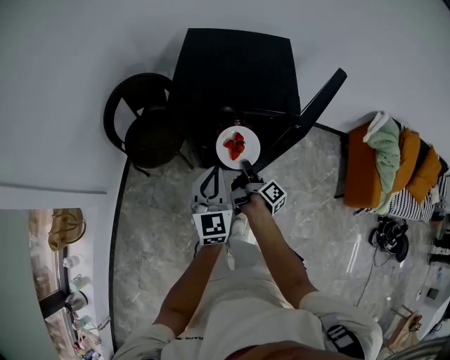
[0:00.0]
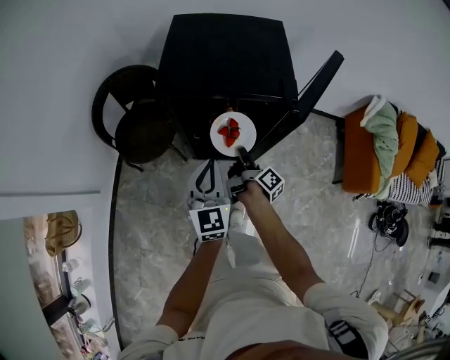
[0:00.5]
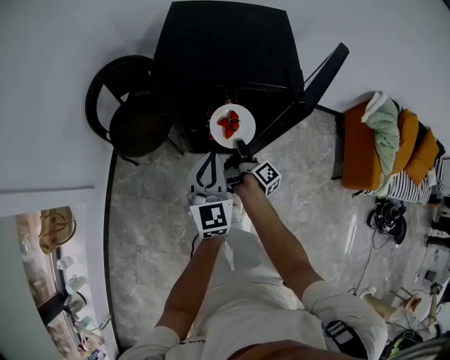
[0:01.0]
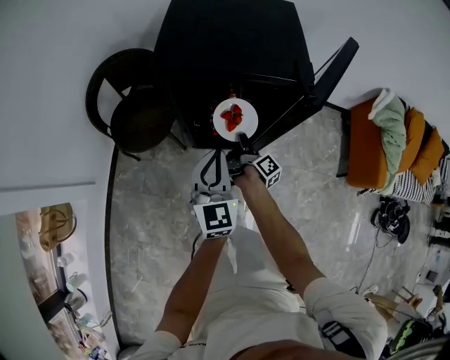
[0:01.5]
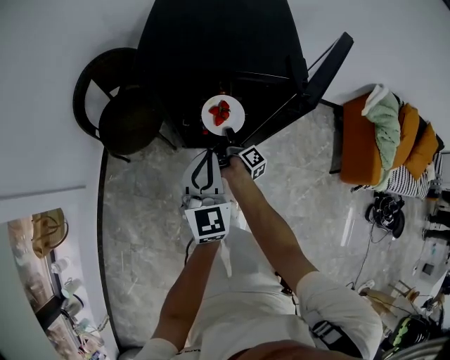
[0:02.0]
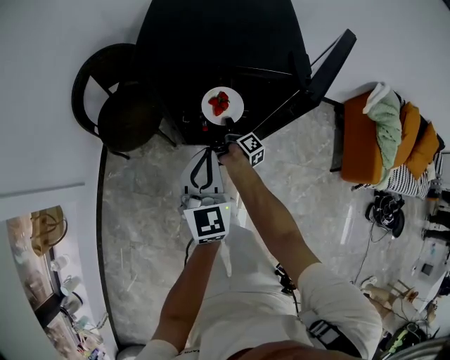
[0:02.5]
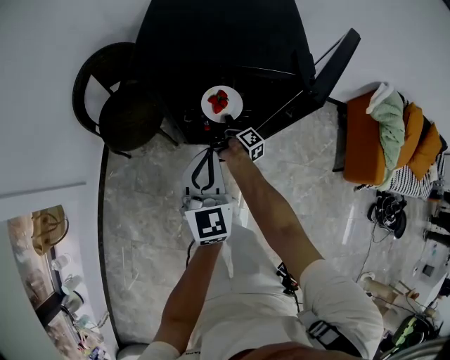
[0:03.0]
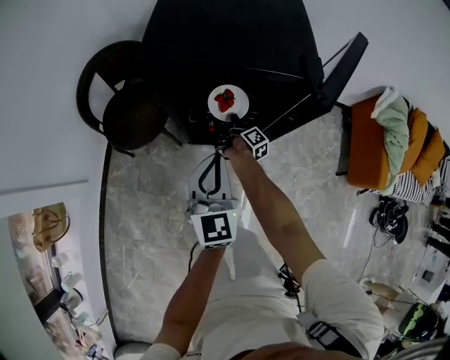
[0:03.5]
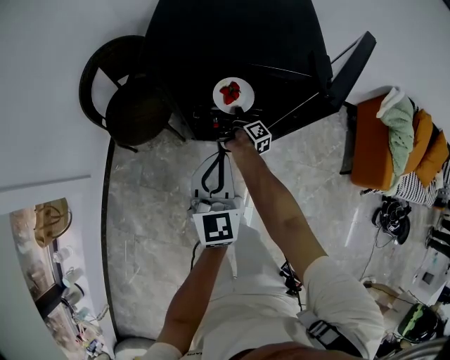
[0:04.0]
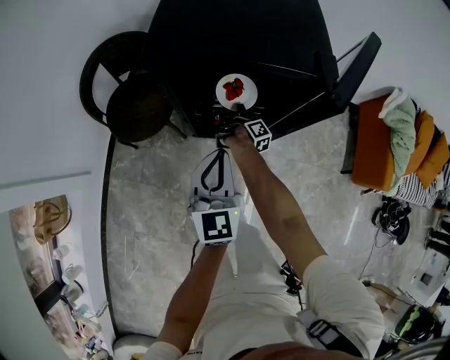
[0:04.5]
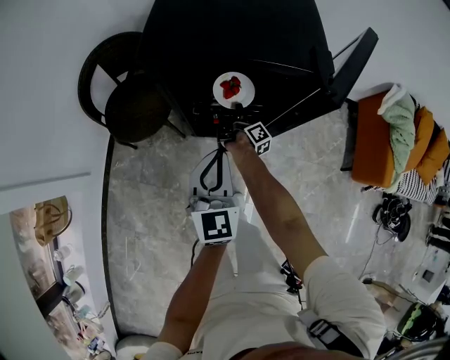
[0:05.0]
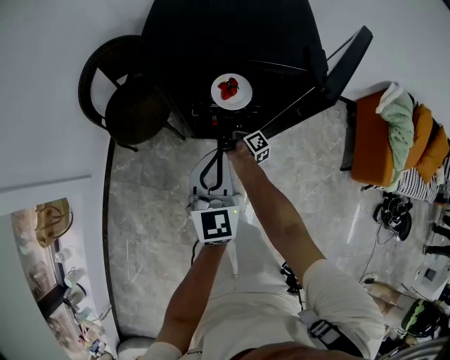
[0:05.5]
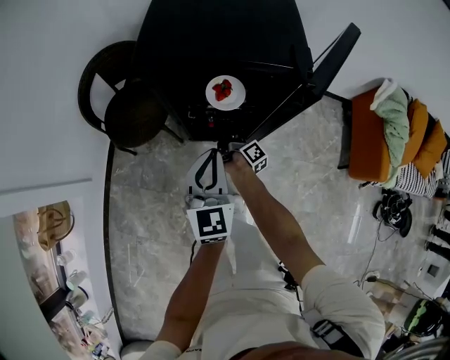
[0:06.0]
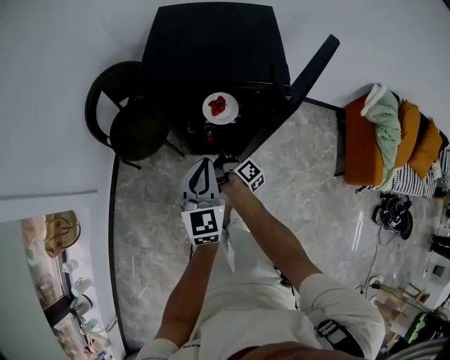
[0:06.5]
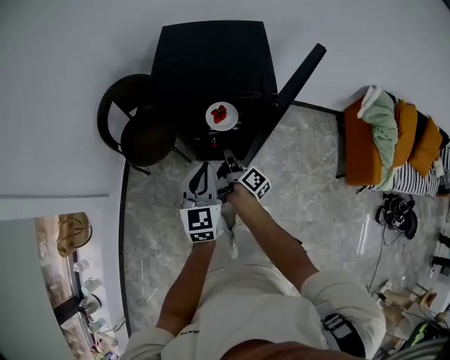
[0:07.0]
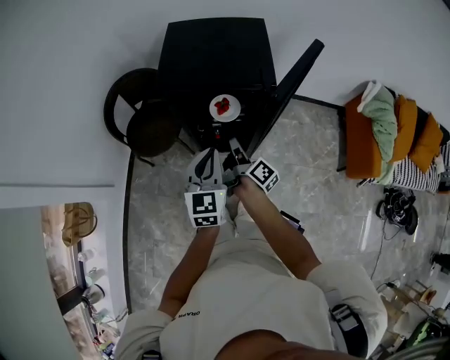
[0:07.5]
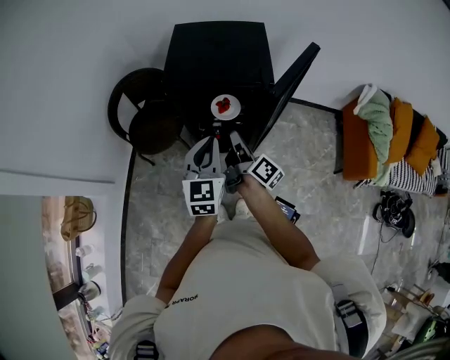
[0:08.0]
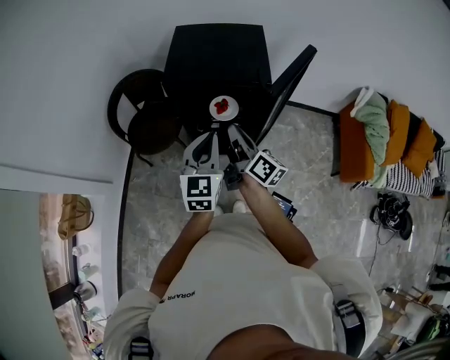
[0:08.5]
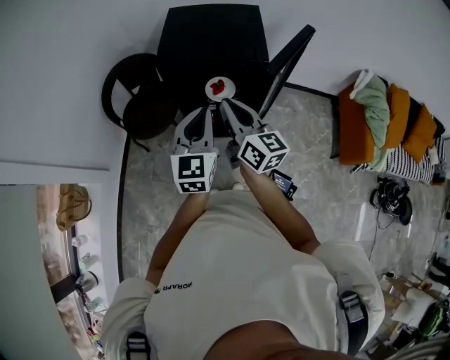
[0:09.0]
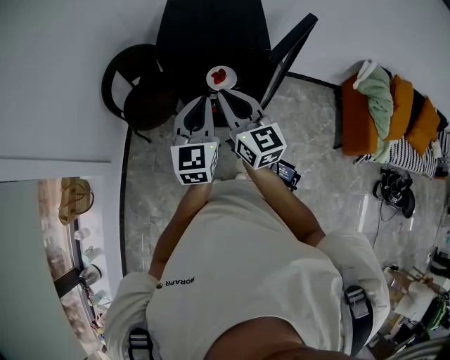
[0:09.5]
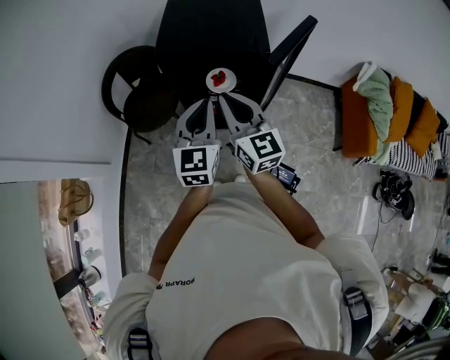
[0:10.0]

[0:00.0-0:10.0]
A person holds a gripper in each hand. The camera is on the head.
0:00.0 to 0:02.0: The left gripper goes roughly 5 cm downward.
0:06.0 to 0:08.0: The left gripper heads upward, covering roughly 15 cm.

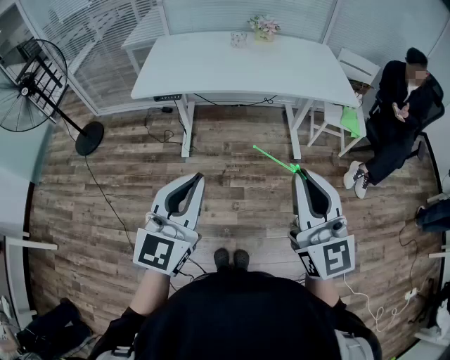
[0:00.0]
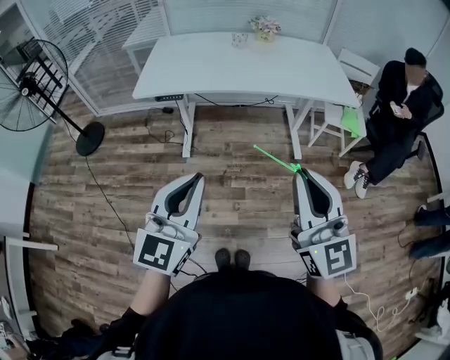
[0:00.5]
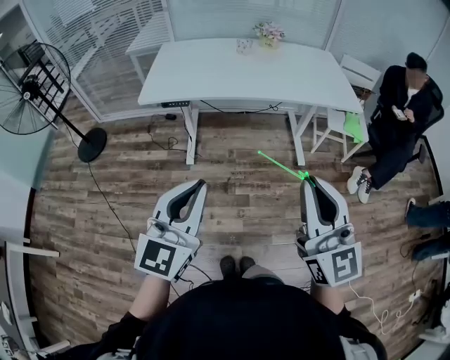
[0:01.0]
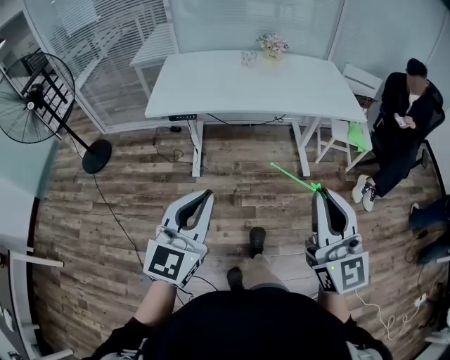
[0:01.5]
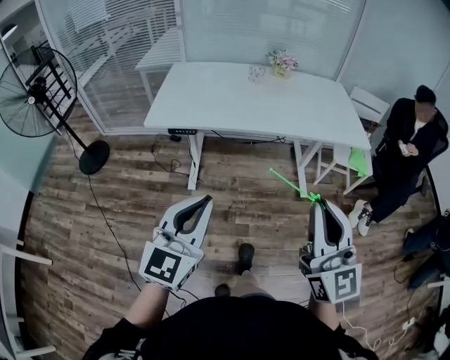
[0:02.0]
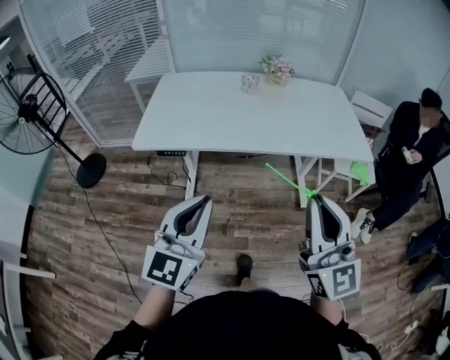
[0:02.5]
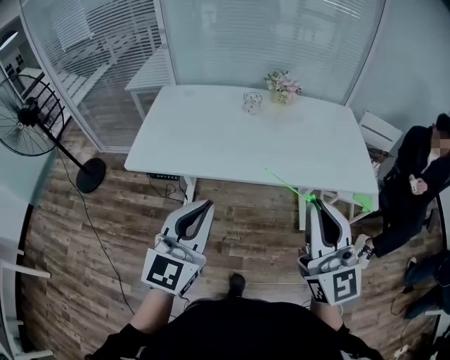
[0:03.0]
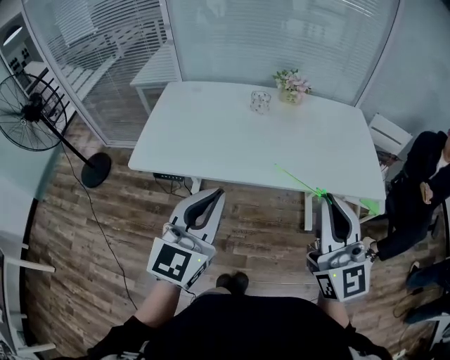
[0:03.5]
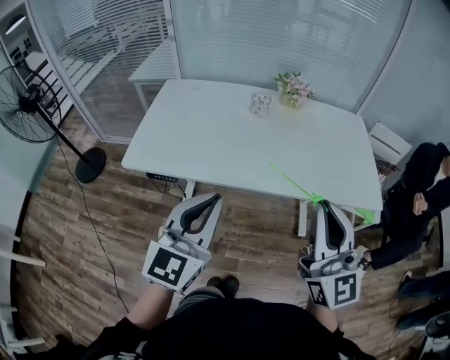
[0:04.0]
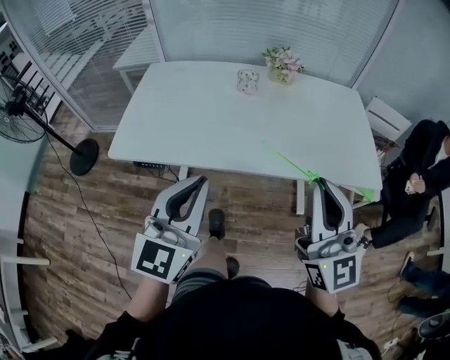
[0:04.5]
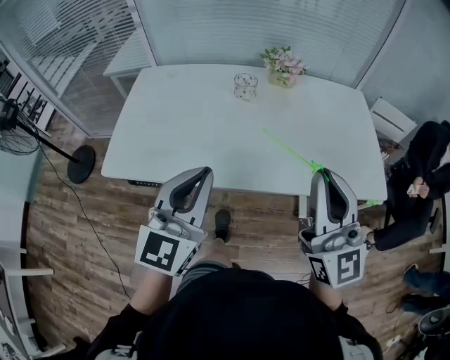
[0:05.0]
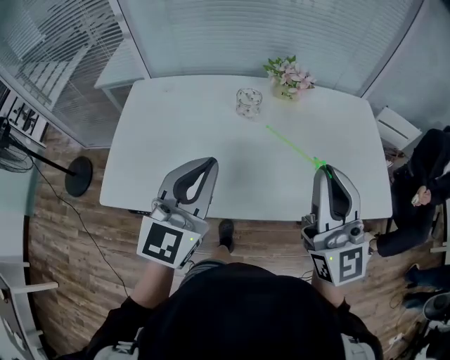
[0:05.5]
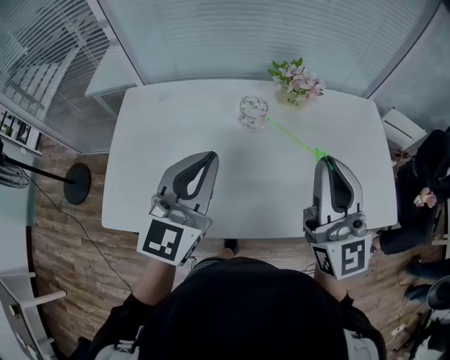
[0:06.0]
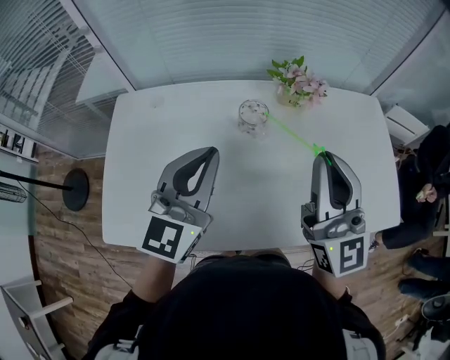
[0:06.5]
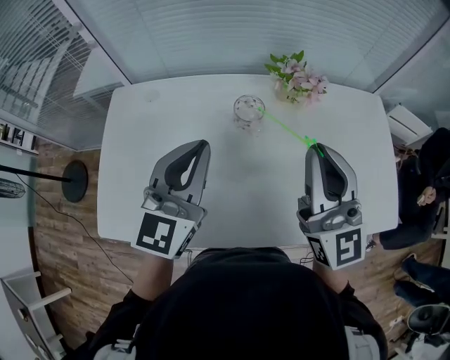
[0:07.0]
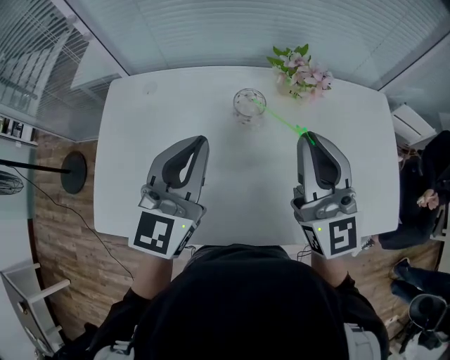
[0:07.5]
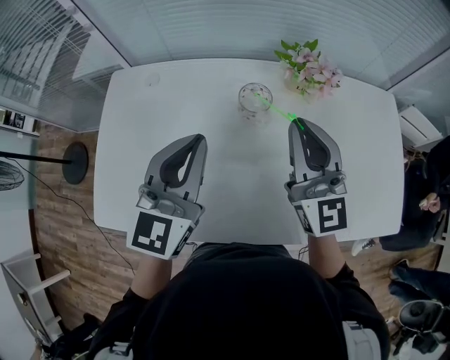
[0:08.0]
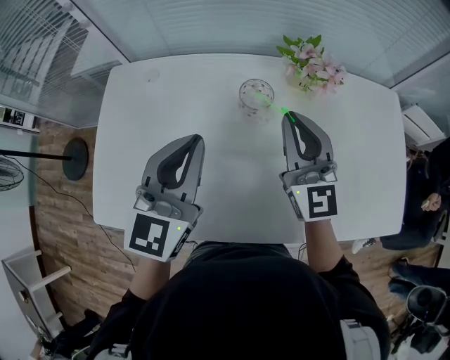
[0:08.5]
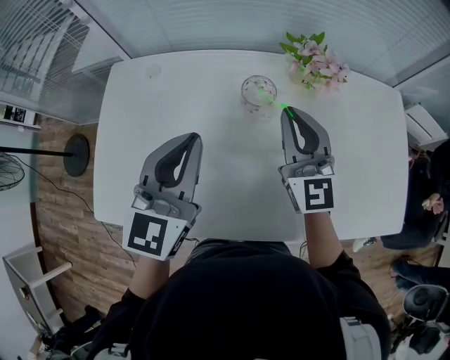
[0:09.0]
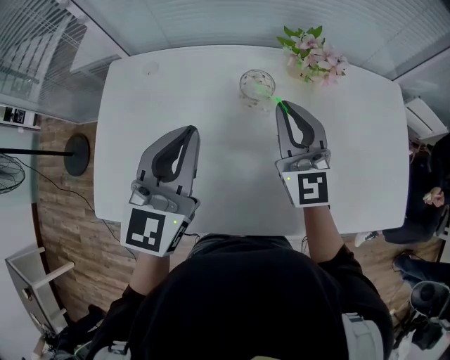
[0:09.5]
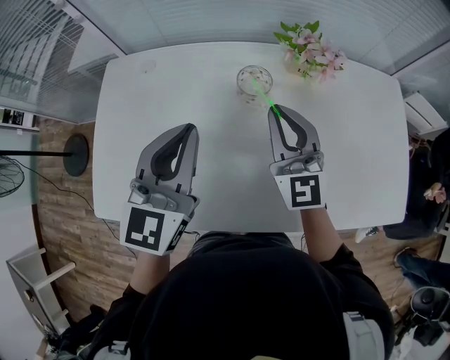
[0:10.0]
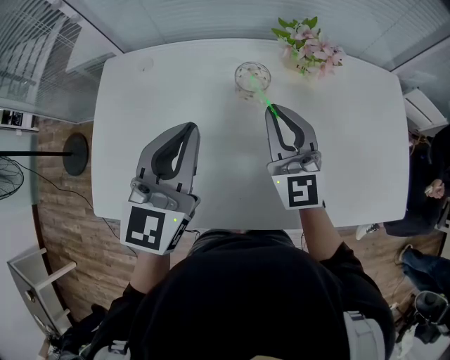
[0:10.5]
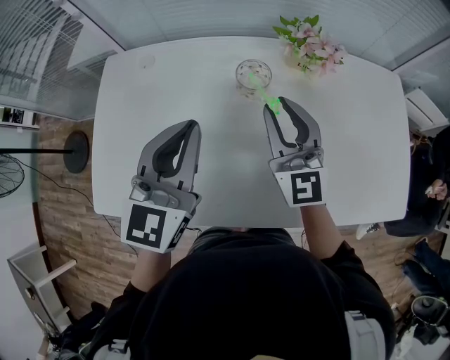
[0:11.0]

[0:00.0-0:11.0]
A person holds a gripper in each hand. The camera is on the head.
0:00.0 to 0:02.0: The left gripper moves forward and to the left, roughly 10 cm. Meanwhile the right gripper moves forward, roughly 5 cm.
0:02.0 to 0:03.5: The two grippers go approximately 25 cm forward.
0:03.5 to 0:05.5: The grippers both shift forward by some 20 cm.
0:05.5 to 0:07.5: The grippers both shift forward by some 15 cm.
0:07.5 to 0:09.0: The right gripper shifts about 10 cm downward and forward.
0:09.0 to 0:11.0: The grippers move only a little.

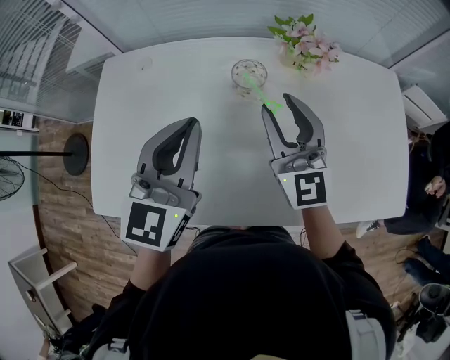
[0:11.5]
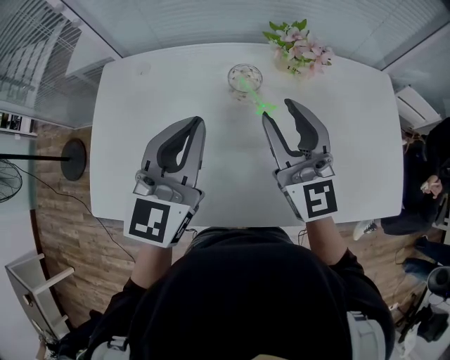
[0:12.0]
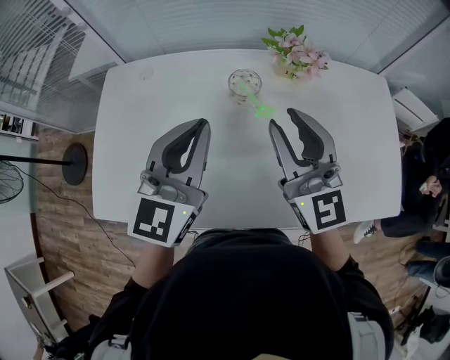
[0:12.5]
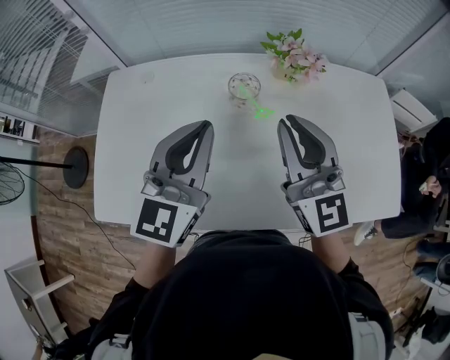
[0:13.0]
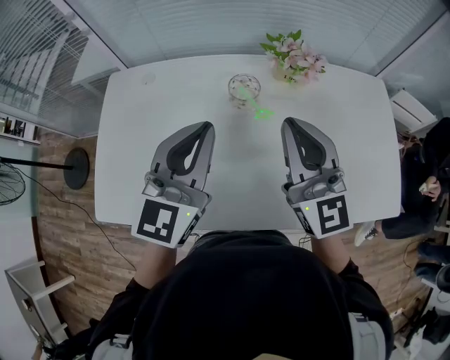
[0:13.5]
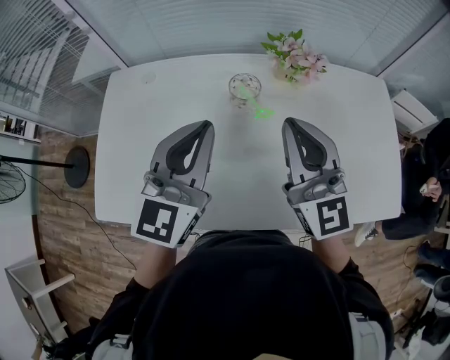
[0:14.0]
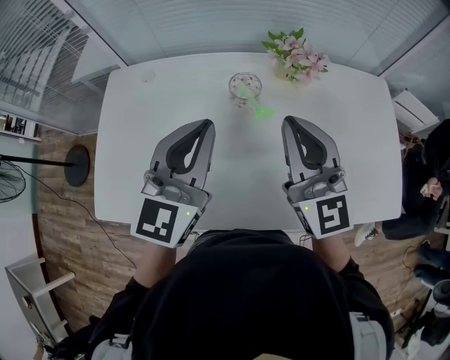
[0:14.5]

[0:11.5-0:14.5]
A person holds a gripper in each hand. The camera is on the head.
0:11.5 to 0:13.0: The right gripper travels upward by roughly 5 cm, and closes up.
0:13.0 to 0:14.5: Neither gripper changes place.

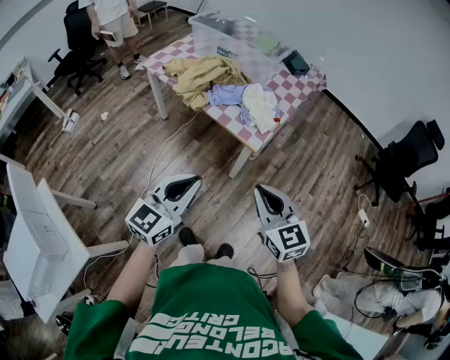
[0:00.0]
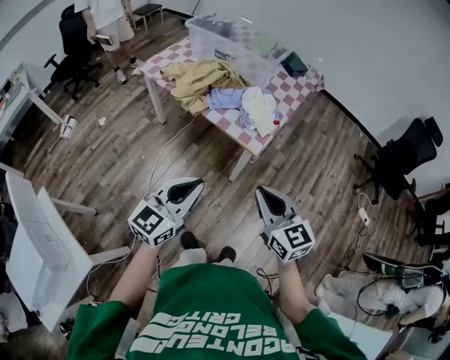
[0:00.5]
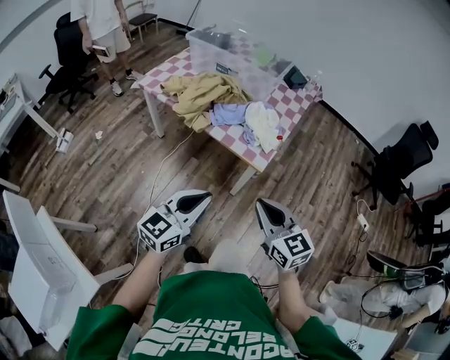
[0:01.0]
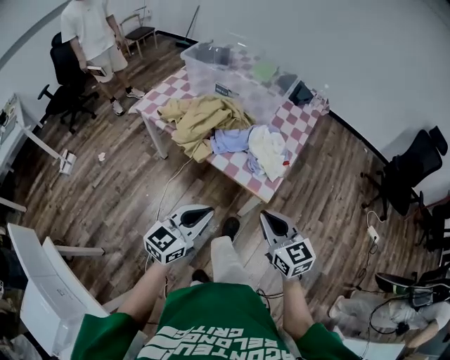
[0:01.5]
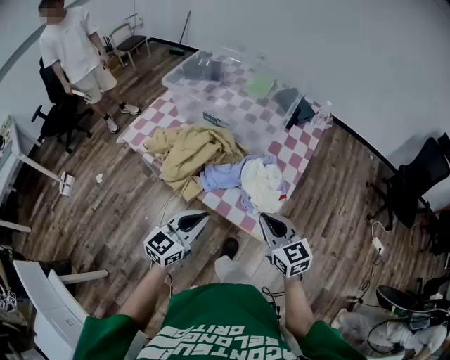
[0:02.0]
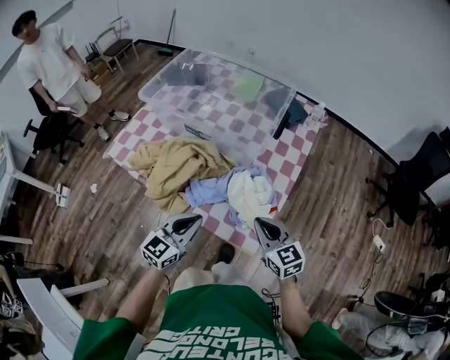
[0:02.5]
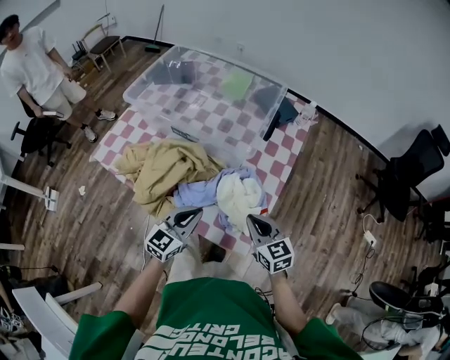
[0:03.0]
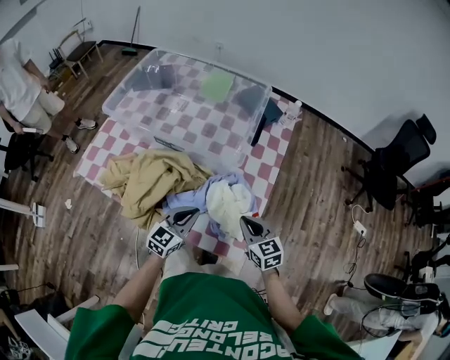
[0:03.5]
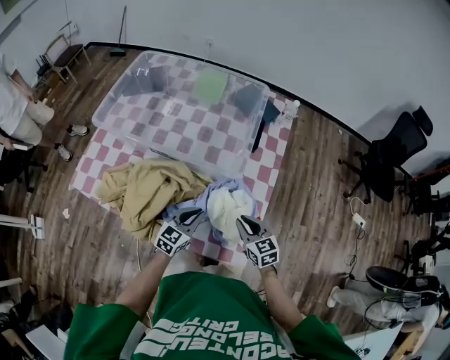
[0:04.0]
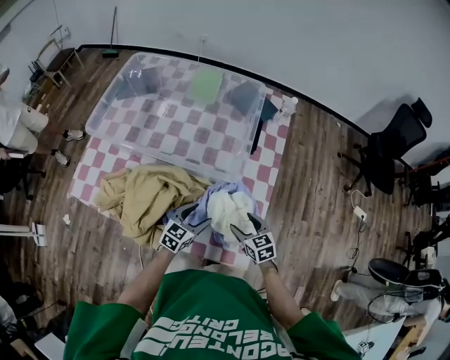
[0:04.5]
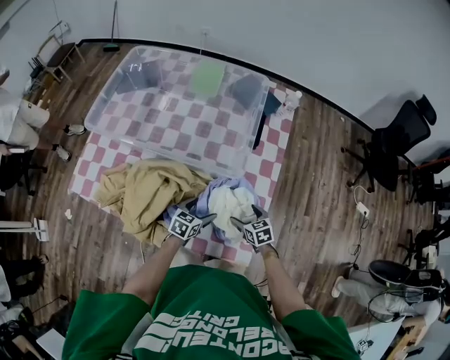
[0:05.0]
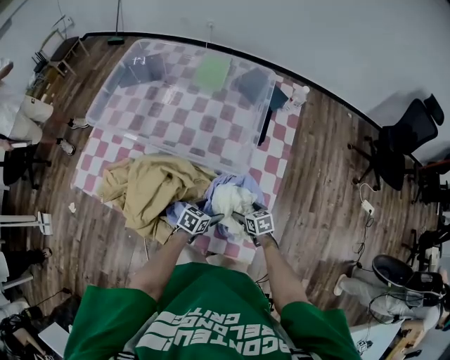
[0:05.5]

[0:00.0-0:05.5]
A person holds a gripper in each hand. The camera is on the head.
0:00.0 to 0:02.0: Both grippers travel together forward, roughly 35 cm.
0:02.0 to 0:03.5: The grippers both shift forward and downward by some 20 cm.
0:03.5 to 0:05.5: The two grippers go approximately 20 cm downward. The left gripper changes its angle by some 40 degrees, and opens its fingers; the right gripper changes its angle by some 30 degrees, and opens its fingers.
